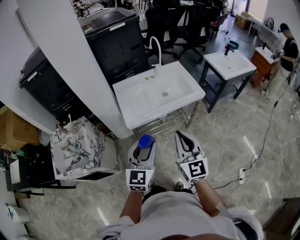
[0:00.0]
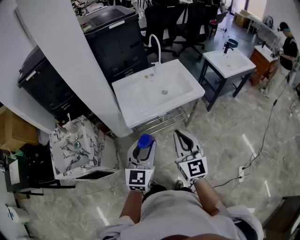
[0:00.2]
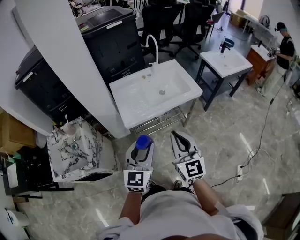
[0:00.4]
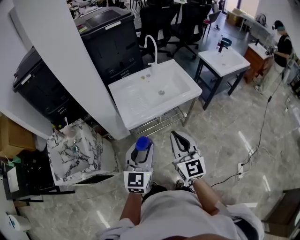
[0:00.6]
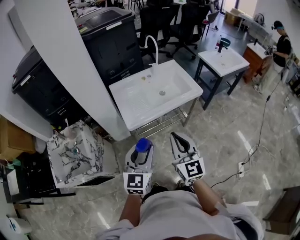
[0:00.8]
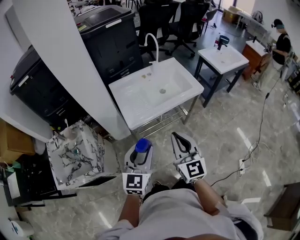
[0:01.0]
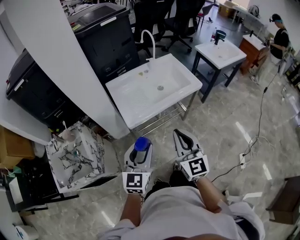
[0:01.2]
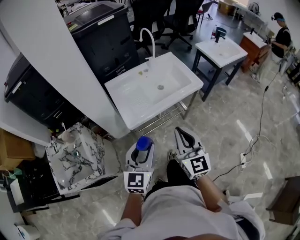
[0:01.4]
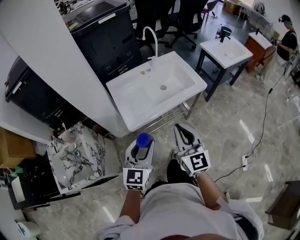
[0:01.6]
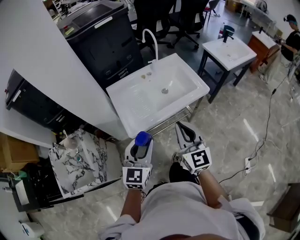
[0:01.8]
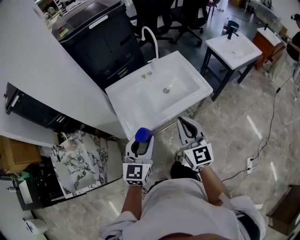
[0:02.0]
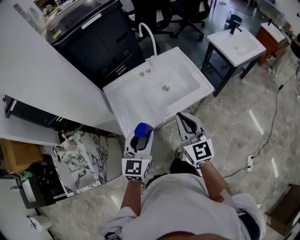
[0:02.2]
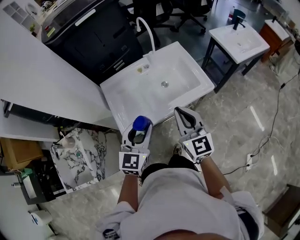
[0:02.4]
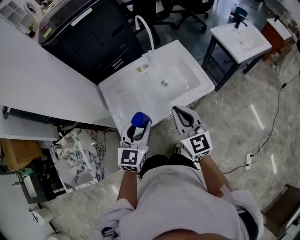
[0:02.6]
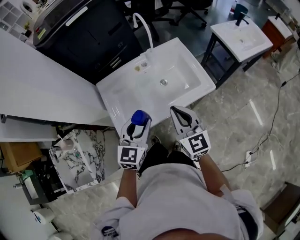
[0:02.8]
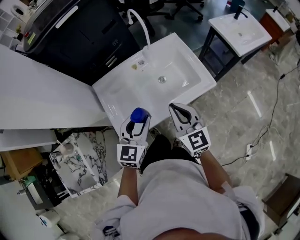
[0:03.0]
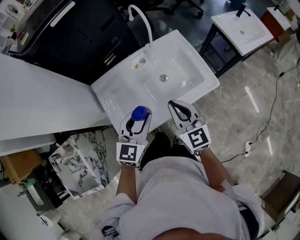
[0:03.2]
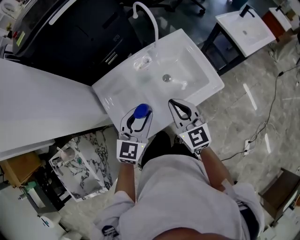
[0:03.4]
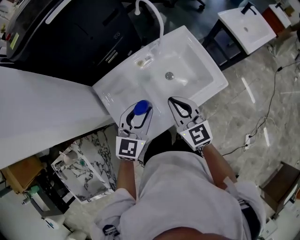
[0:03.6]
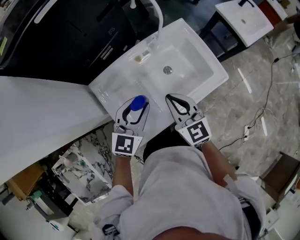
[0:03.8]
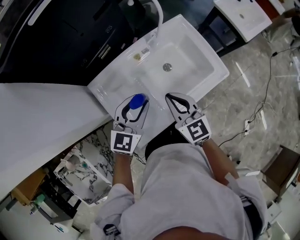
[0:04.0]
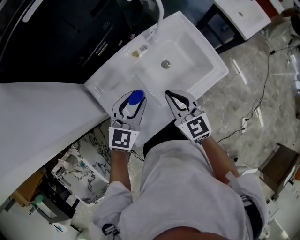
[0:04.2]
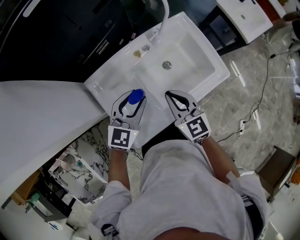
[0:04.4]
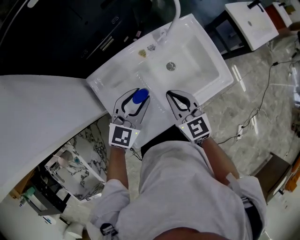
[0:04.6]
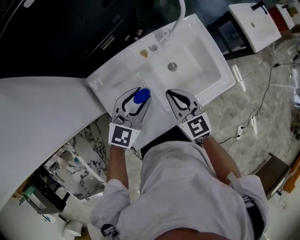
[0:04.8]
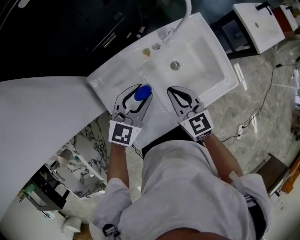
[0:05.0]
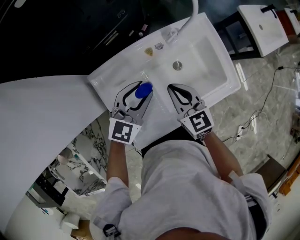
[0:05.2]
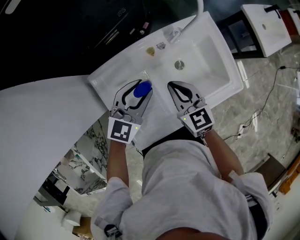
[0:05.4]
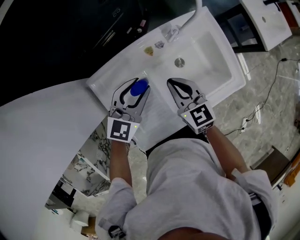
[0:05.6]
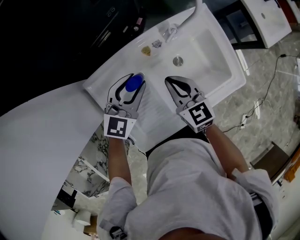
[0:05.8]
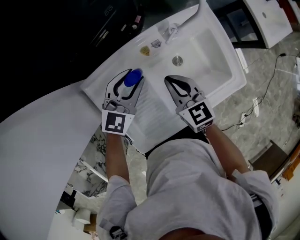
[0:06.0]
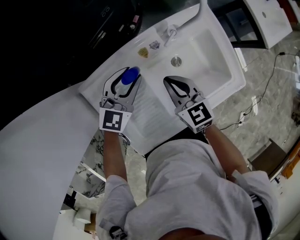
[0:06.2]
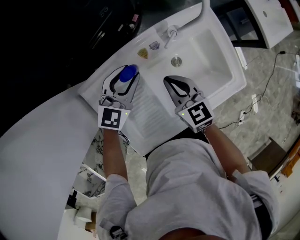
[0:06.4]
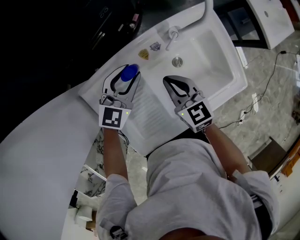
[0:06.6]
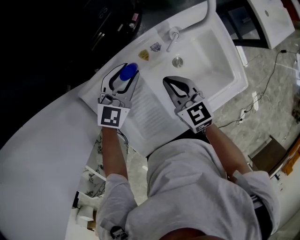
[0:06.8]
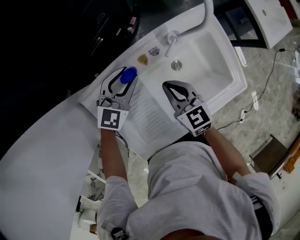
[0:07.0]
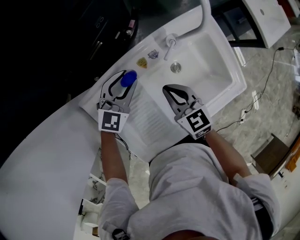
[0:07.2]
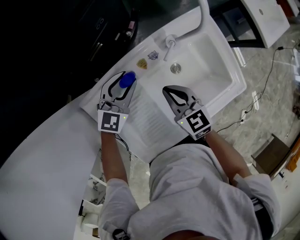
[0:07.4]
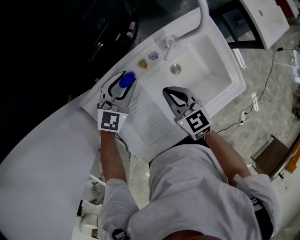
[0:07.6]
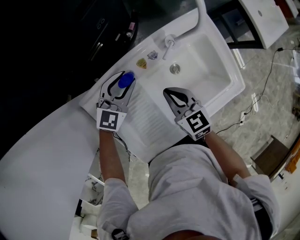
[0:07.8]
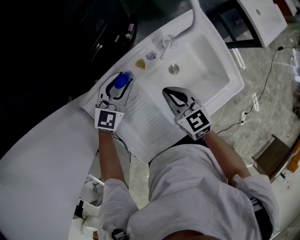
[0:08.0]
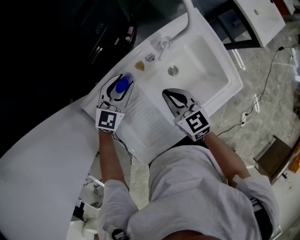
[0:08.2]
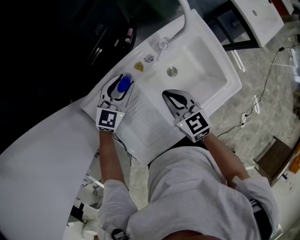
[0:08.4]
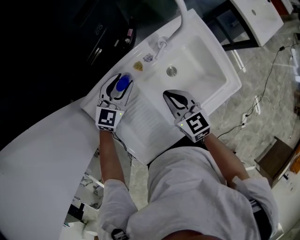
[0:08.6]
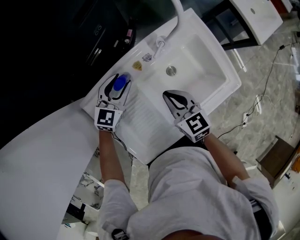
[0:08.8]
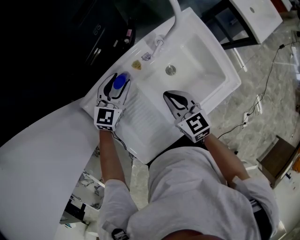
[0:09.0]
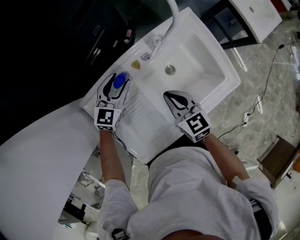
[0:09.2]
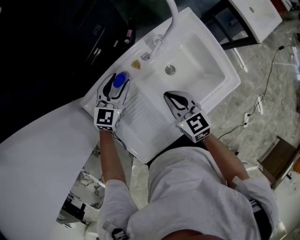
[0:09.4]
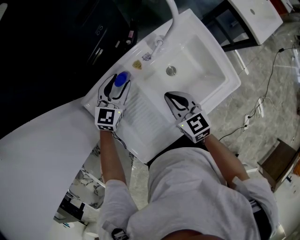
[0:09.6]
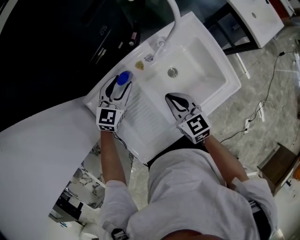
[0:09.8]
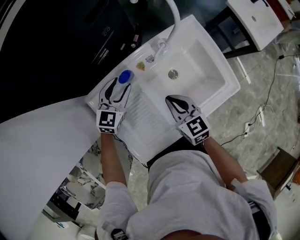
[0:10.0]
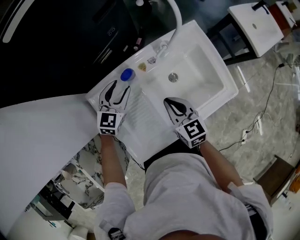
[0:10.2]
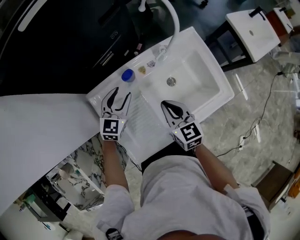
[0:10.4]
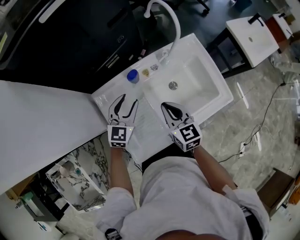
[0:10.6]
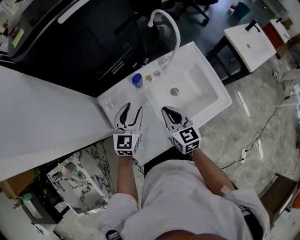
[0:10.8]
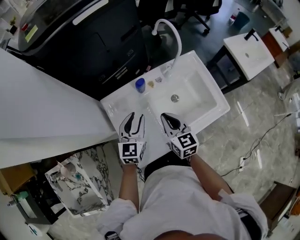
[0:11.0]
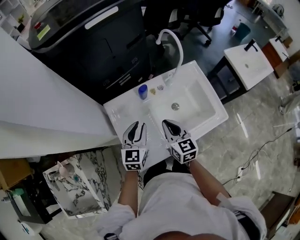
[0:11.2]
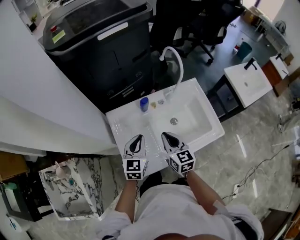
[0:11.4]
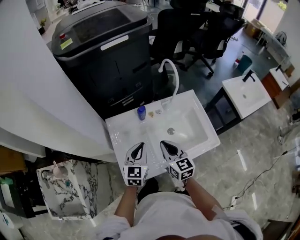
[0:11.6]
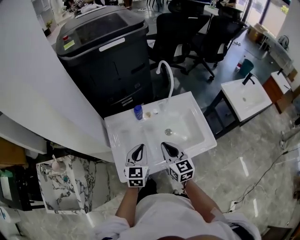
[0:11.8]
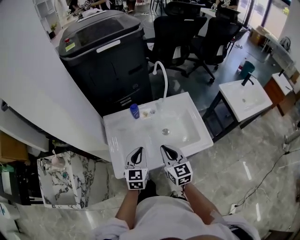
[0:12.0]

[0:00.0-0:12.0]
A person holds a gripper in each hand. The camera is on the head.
0:00.0 to 0:01.6: Both grippers travel together forward and to the left, roughly 10 cm.
0:01.6 to 0:03.0: The two grippers go approximately 25 cm forward.
0:03.0 to 0:04.4: The right gripper travels to the left, forward and downward by about 20 cm; the left gripper shifts approximately 20 cm forward, to the left and downward.
0:04.4 to 0:06.0: Both grippers move forward and downward, roughly 15 cm.
0:06.0 to 0:07.6: The left gripper moves forward, about 5 cm.
0:07.6 to 0:09.0: The grippers make only small movements.
0:09.0 to 0:10.4: The left gripper travels backward by about 5 cm. Meanwhile the right gripper shifts by approximately 5 cm.
0:10.4 to 0:12.0: The grippers both shift backward, upward and to the right by roughly 20 cm. The left gripper changes its angle by some 30 degrees, and closes.

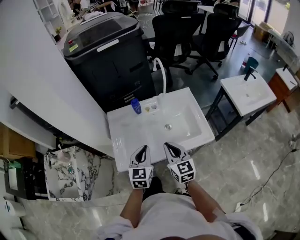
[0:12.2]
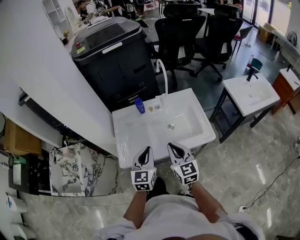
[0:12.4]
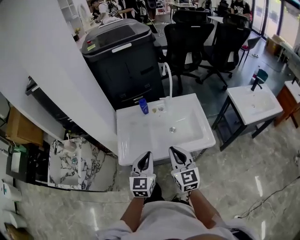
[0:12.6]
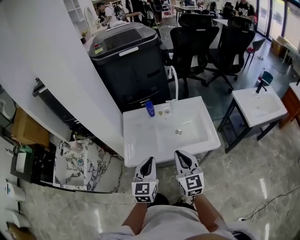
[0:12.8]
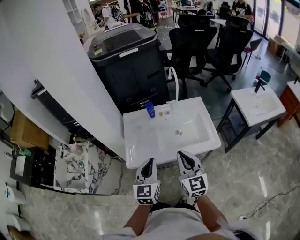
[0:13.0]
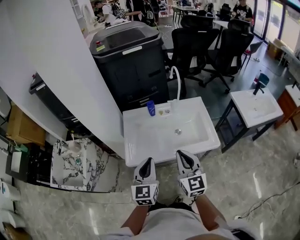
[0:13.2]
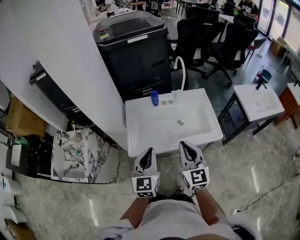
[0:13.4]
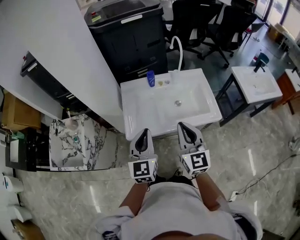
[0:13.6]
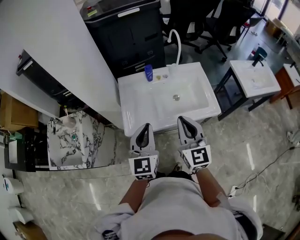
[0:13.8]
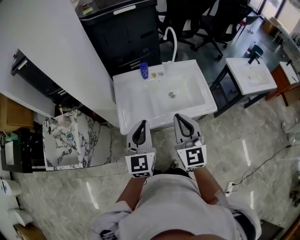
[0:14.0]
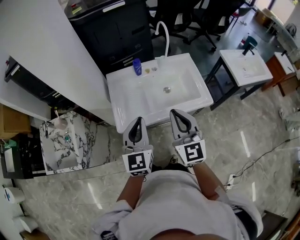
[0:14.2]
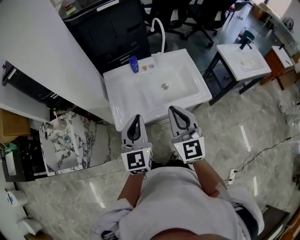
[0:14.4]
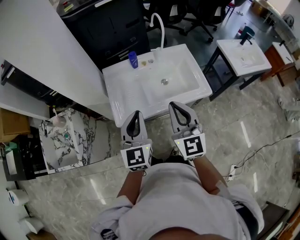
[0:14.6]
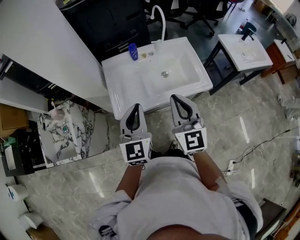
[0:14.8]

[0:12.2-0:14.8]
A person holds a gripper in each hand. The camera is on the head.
0:12.2 to 0:13.4: The right gripper moves upward and backward, some 15 cm; the left gripper heads backward, upward and to the left, covering approximately 15 cm.
0:13.4 to 0:14.8: There are only small adjustments of the grippers.

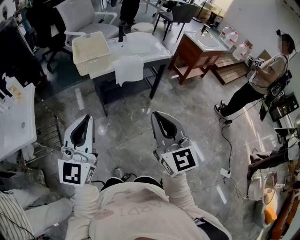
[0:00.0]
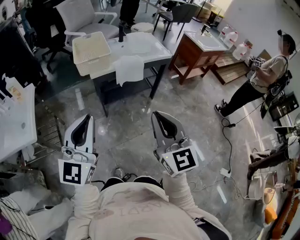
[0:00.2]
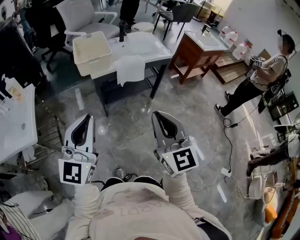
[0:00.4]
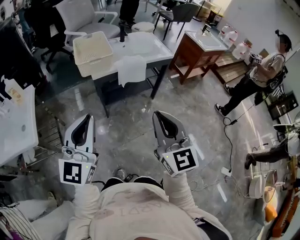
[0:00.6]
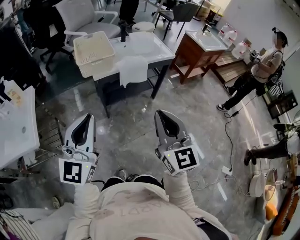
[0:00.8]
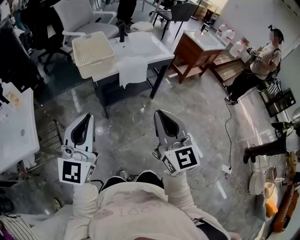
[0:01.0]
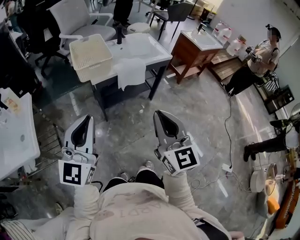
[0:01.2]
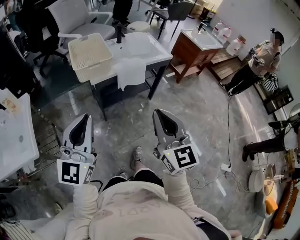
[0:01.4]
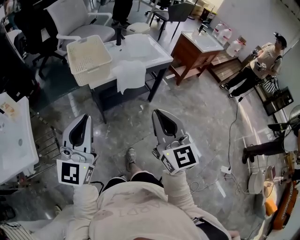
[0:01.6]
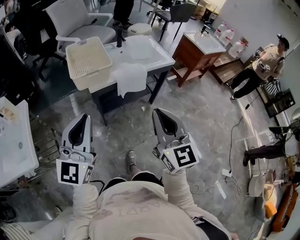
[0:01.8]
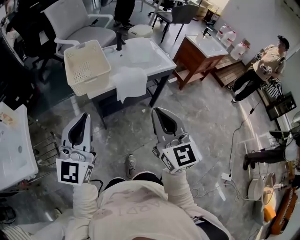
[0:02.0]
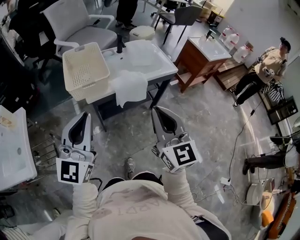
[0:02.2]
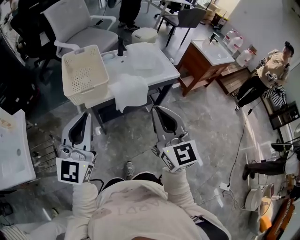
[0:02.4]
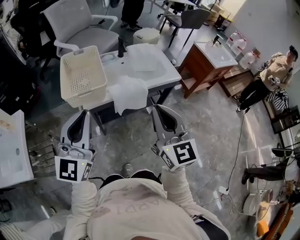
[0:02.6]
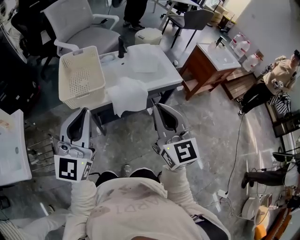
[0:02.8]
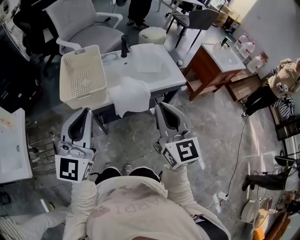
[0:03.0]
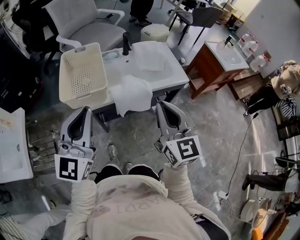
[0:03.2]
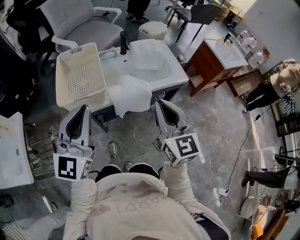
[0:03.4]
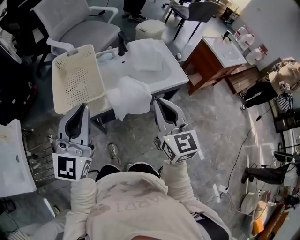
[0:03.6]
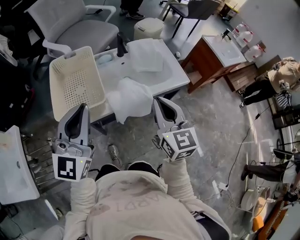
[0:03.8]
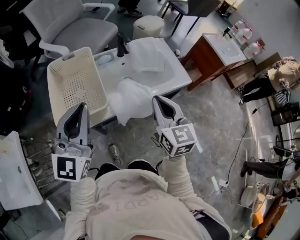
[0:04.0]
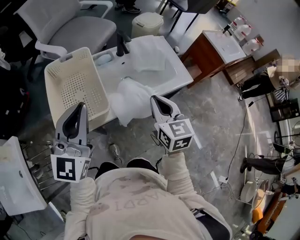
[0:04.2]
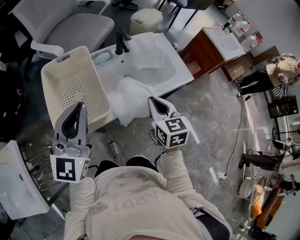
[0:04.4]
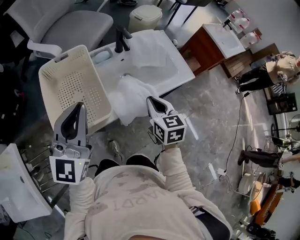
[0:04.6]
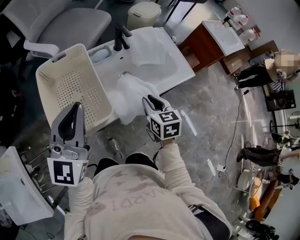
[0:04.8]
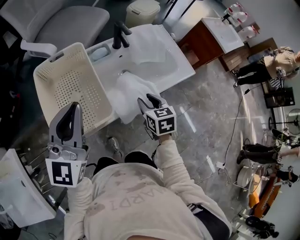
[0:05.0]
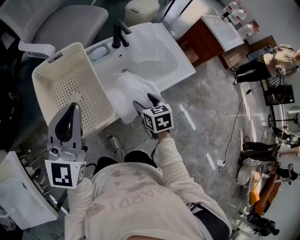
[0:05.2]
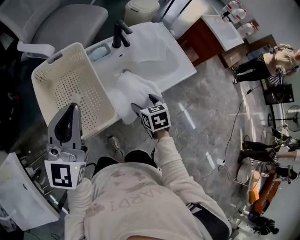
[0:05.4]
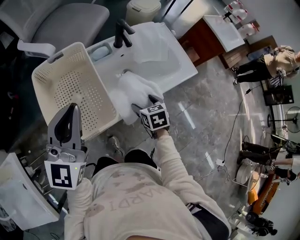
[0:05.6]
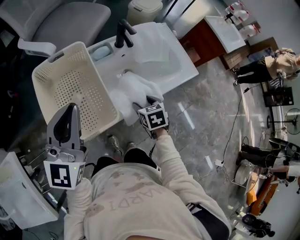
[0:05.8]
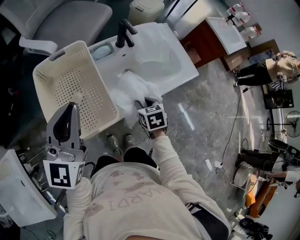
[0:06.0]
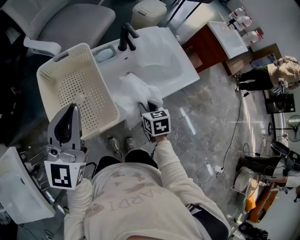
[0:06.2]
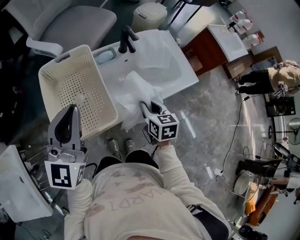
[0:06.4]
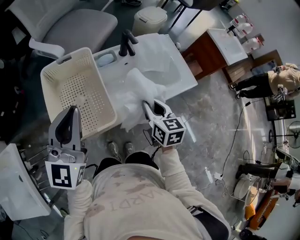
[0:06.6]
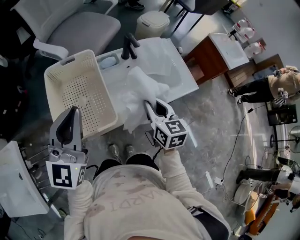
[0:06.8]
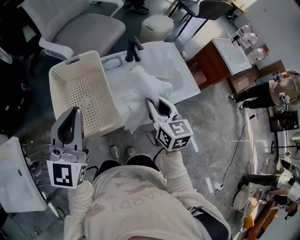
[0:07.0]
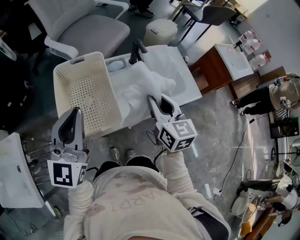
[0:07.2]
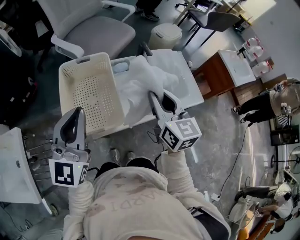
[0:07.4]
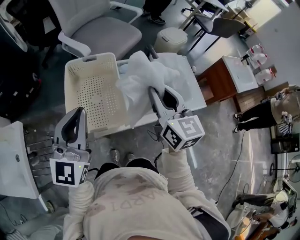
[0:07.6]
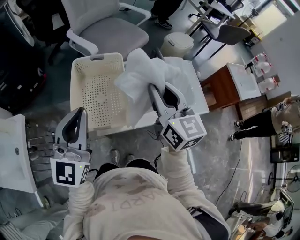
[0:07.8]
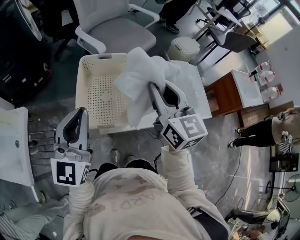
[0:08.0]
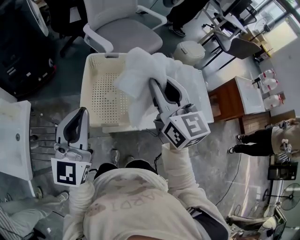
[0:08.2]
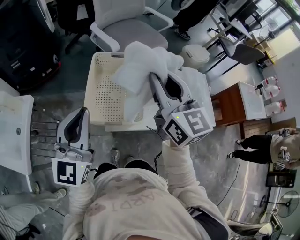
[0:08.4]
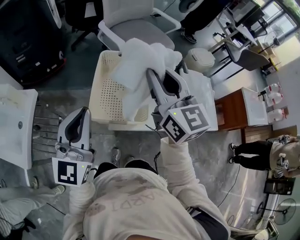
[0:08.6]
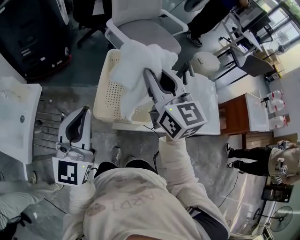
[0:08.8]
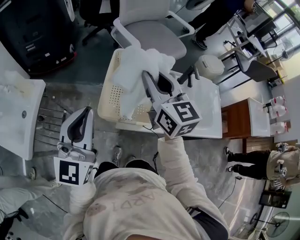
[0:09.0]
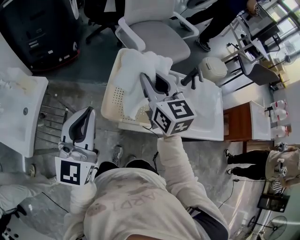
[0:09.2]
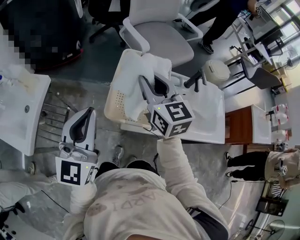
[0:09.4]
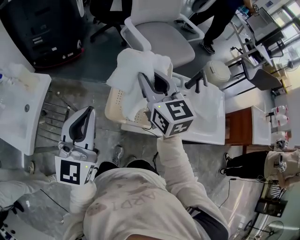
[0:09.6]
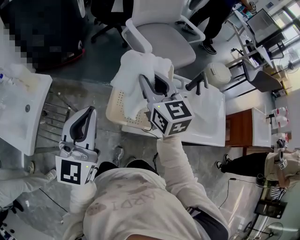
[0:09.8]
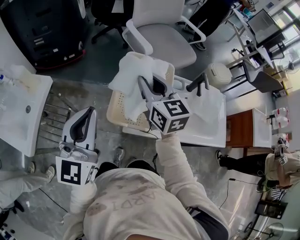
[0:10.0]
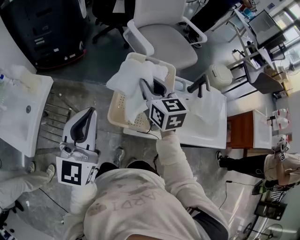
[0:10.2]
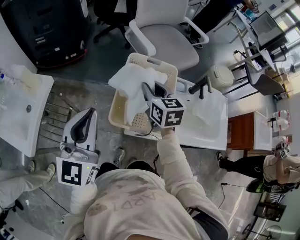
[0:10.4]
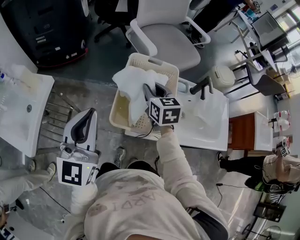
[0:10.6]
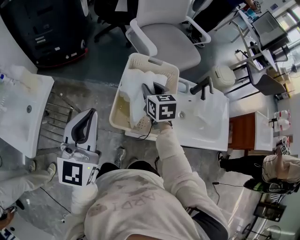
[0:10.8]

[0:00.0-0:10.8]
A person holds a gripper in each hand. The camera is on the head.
0:00.0 to 0:01.6: Both grippers move forward and to the left, some 15 cm.
0:01.6 to 0:03.0: The grippers both shift forward by about 25 cm.
0:03.0 to 0:04.6: The right gripper travels forward and downward by approximately 30 cm, and angles its fingers downward, by approximately 30 degrees; the left gripper heads forward, covering about 25 cm.
0:04.6 to 0:06.2: The left gripper shifts by approximately 5 cm, while the right gripper moves downward, approximately 10 cm, and opens and closes again.
0:06.2 to 0:07.8: The right gripper is displaced upward by roughly 30 cm, and tips its fingers upward by some 40 degrees. Meanwhile the left gripper moves backward, about 5 cm.
0:07.8 to 0:09.2: The left gripper travels to the left by roughly 10 cm. Meanwhile the right gripper heads to the left, covering some 20 cm, and changes its angle by about 20 degrees.
0:09.2 to 0:10.8: The right gripper heads downward and forward, covering approximately 20 cm, and swivels approximately 30 degrees.
